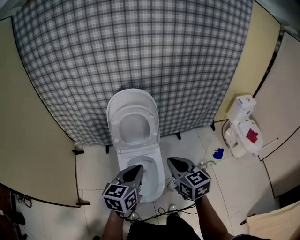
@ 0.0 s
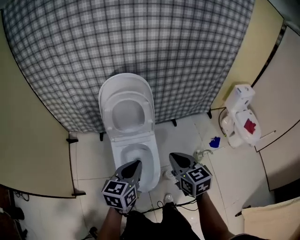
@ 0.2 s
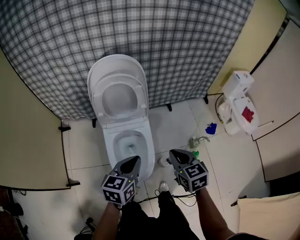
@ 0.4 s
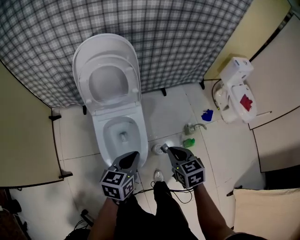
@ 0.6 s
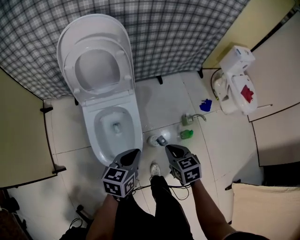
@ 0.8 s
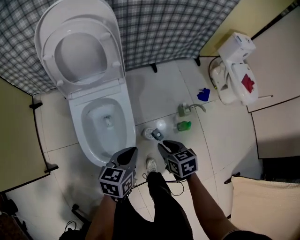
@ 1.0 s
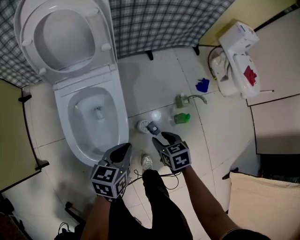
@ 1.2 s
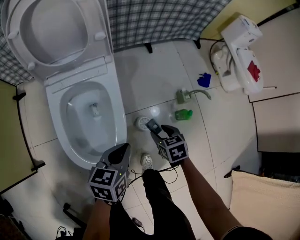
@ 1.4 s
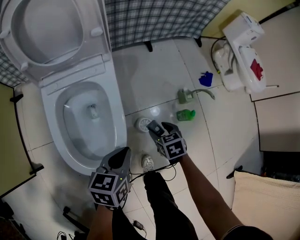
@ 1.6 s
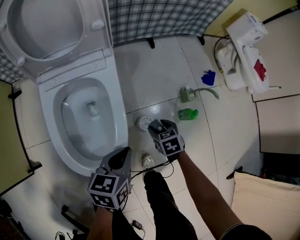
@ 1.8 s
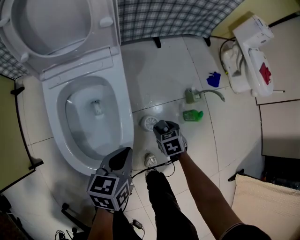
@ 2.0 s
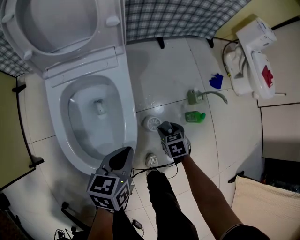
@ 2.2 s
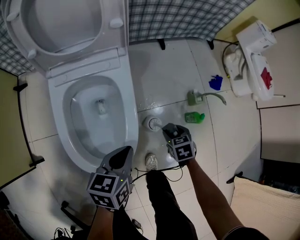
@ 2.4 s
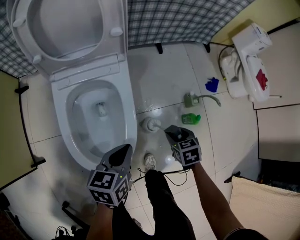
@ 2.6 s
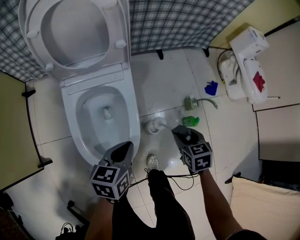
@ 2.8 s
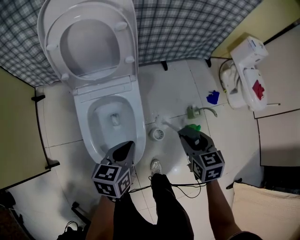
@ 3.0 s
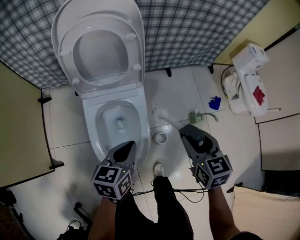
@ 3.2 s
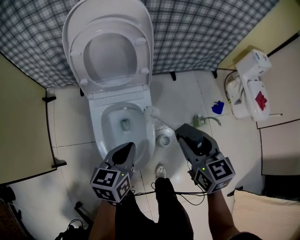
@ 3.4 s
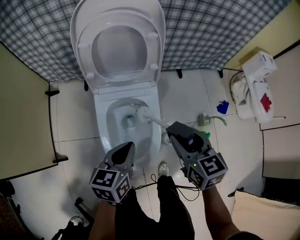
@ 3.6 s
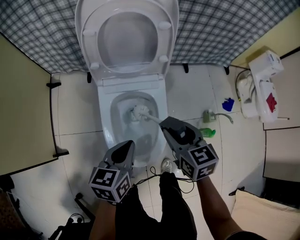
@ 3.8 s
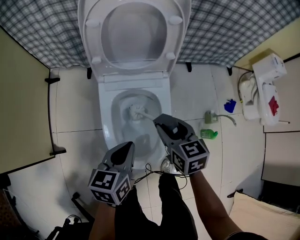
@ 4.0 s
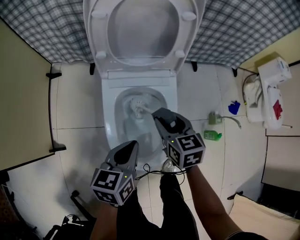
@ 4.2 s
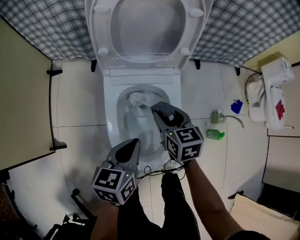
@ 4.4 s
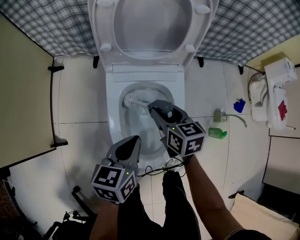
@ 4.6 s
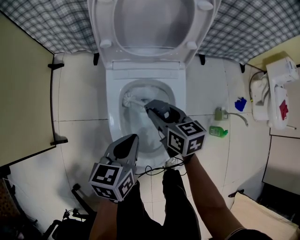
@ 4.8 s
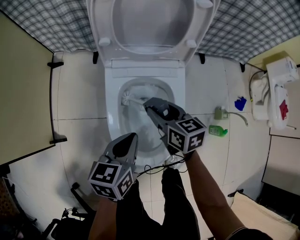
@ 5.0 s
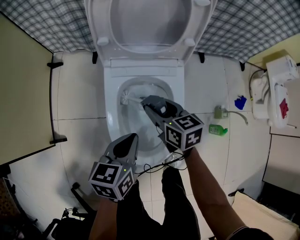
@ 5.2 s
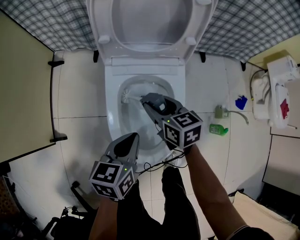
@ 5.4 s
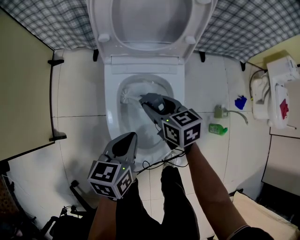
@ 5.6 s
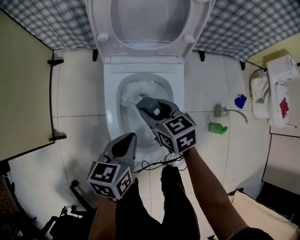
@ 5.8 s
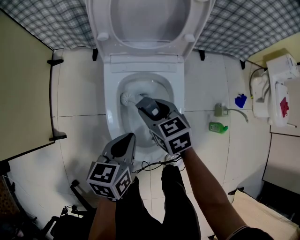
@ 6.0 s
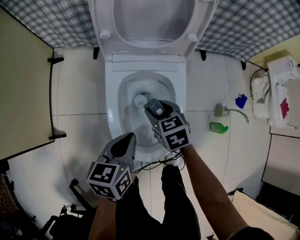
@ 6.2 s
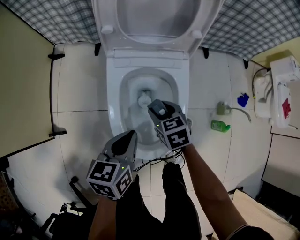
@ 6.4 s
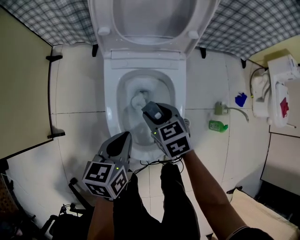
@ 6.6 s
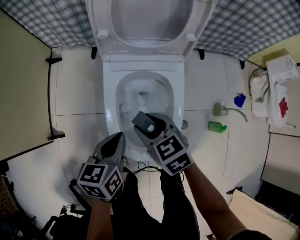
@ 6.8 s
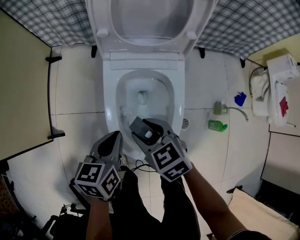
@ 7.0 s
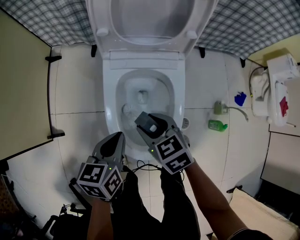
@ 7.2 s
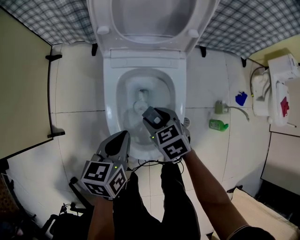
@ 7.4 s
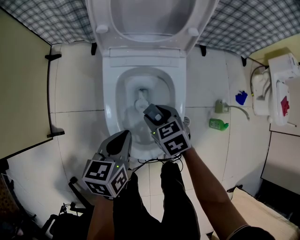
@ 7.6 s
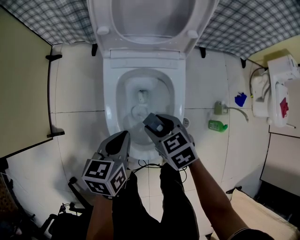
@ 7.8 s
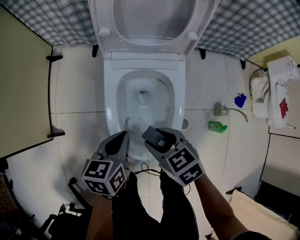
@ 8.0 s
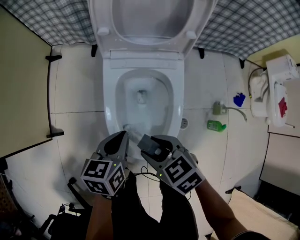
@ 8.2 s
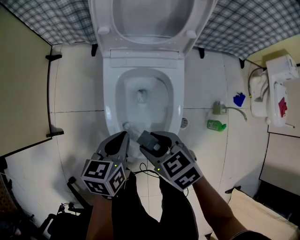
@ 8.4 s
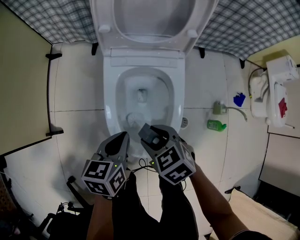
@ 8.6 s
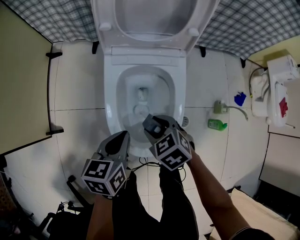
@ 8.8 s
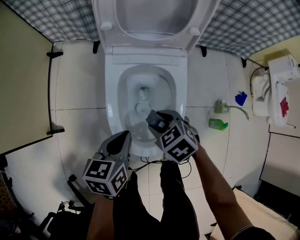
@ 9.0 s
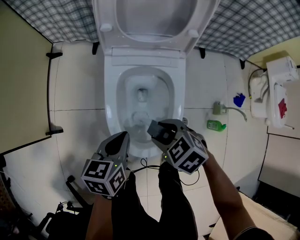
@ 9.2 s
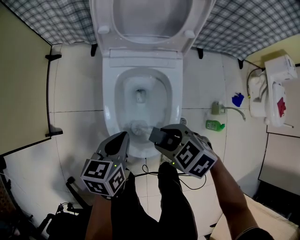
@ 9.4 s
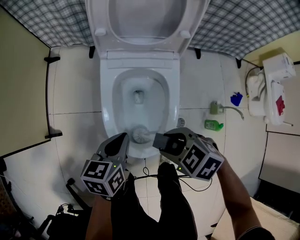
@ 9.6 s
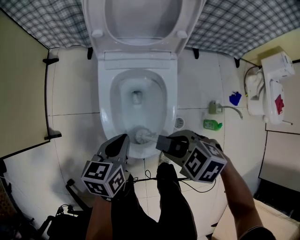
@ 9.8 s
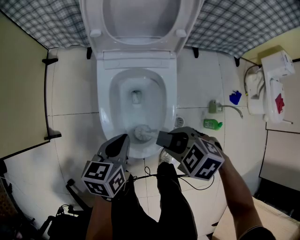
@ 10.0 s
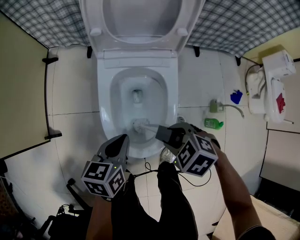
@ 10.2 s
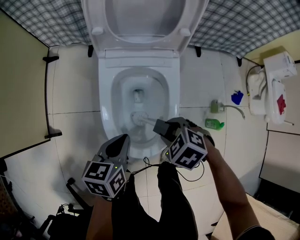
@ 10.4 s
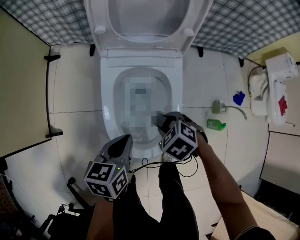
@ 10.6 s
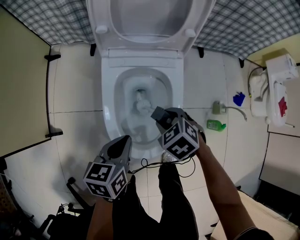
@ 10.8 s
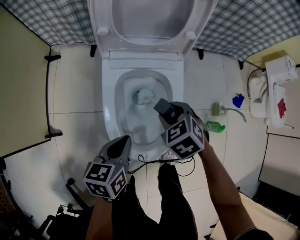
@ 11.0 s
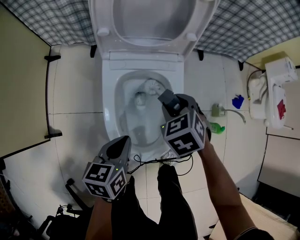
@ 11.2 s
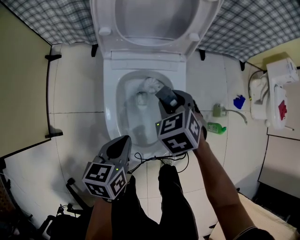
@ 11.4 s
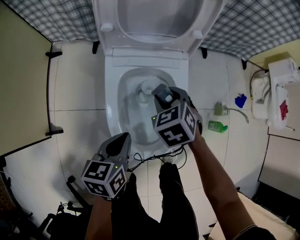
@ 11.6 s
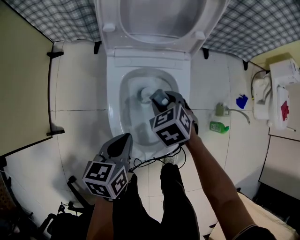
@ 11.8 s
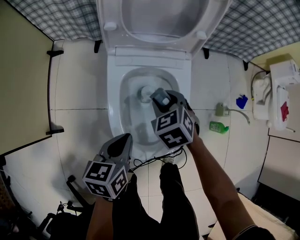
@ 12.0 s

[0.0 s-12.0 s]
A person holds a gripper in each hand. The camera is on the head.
0.0 to 1.6 s: The two grippers go about 50 cm downward. The left gripper rotates roughly 30 degrees. The right gripper angles its fingers downward, by approximately 40 degrees, and opens up.
1.6 to 3.0 s: The right gripper shifts approximately 25 cm upward, while the left gripper heads upward and to the left, covering approximately 15 cm.
3.0 to 4.4 s: The left gripper shifts approximately 10 cm to the left. The right gripper goes some 25 cm to the left.
4.4 to 6.0 s: The right gripper shifts roughly 5 cm to the left.
6.0 to 7.6 s: The right gripper moves up and down over roughly 10 cm, changing direction 2 times.
9.0 to 10.4 s: The right gripper reaches about 10 cm upward, then returns.
10.4 to 12.0 s: The right gripper goes upward and returns, about 5 cm each way, and turns by roughly 30 degrees.

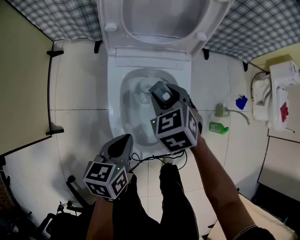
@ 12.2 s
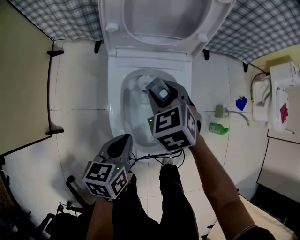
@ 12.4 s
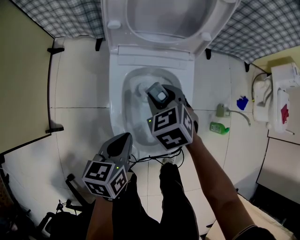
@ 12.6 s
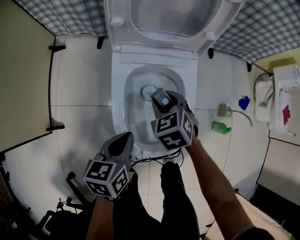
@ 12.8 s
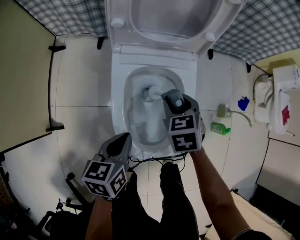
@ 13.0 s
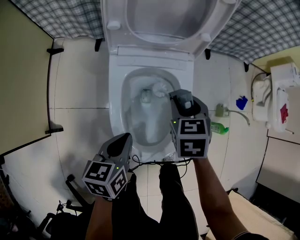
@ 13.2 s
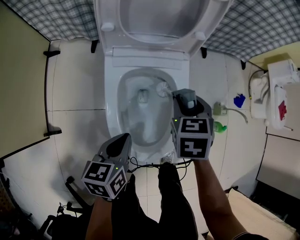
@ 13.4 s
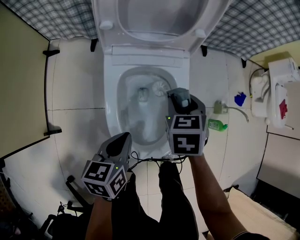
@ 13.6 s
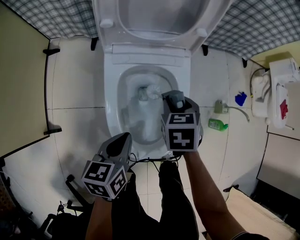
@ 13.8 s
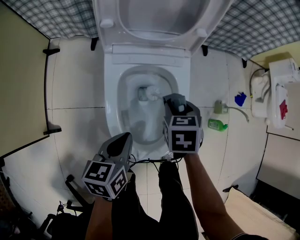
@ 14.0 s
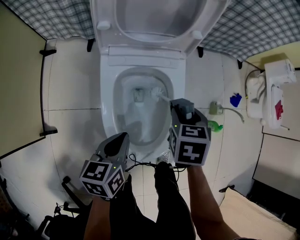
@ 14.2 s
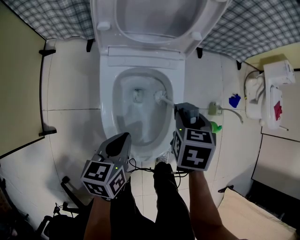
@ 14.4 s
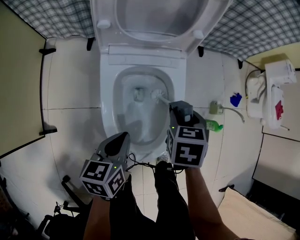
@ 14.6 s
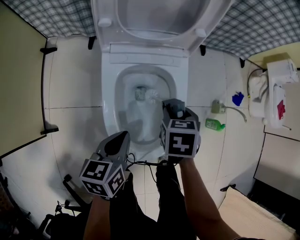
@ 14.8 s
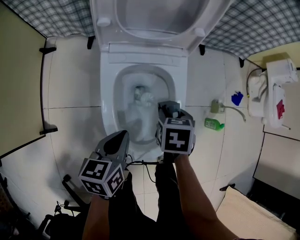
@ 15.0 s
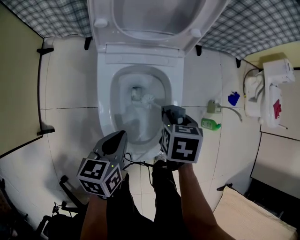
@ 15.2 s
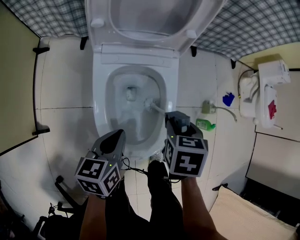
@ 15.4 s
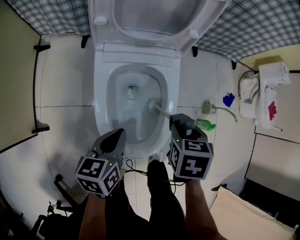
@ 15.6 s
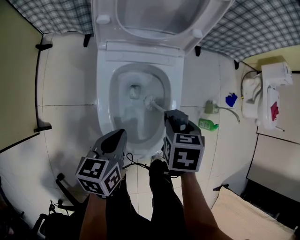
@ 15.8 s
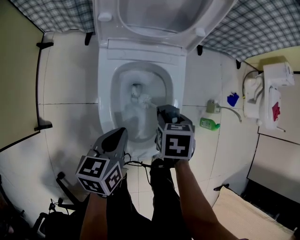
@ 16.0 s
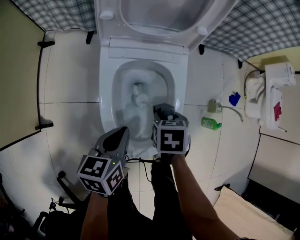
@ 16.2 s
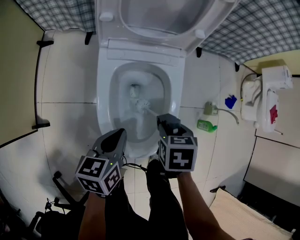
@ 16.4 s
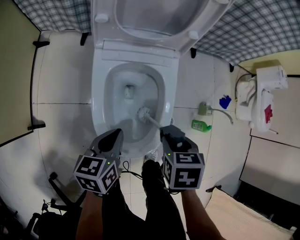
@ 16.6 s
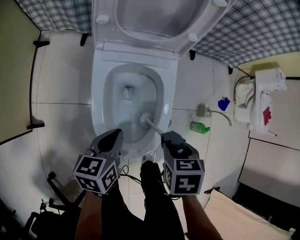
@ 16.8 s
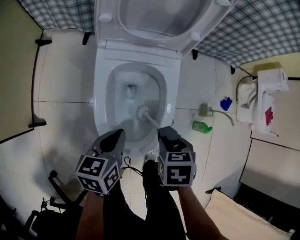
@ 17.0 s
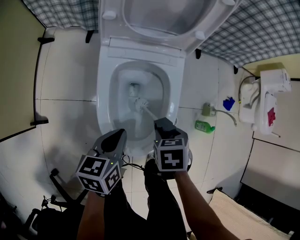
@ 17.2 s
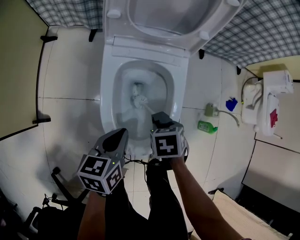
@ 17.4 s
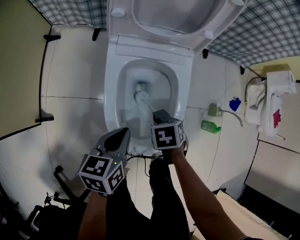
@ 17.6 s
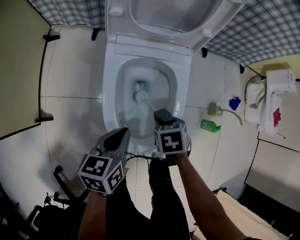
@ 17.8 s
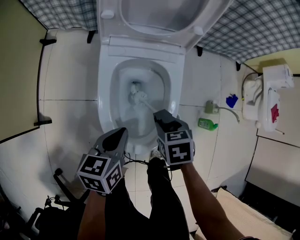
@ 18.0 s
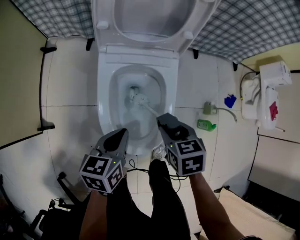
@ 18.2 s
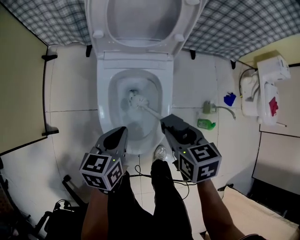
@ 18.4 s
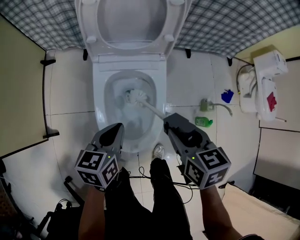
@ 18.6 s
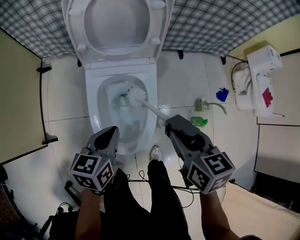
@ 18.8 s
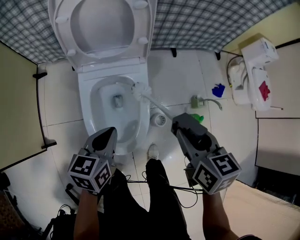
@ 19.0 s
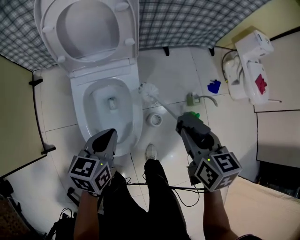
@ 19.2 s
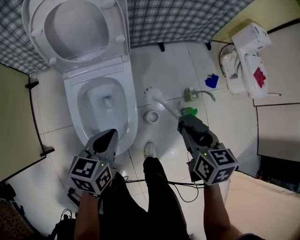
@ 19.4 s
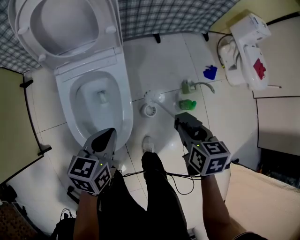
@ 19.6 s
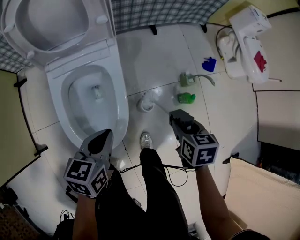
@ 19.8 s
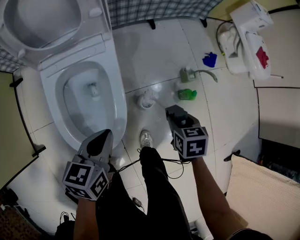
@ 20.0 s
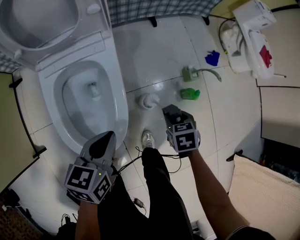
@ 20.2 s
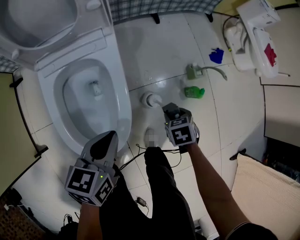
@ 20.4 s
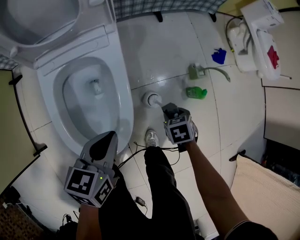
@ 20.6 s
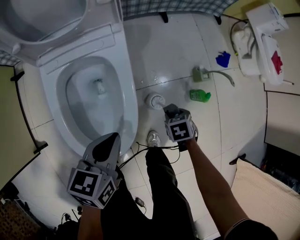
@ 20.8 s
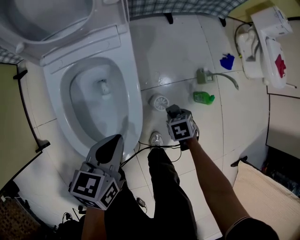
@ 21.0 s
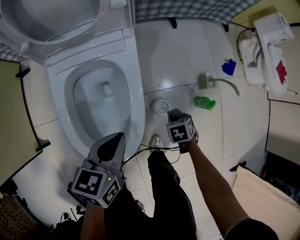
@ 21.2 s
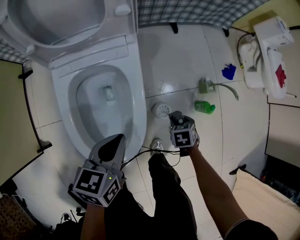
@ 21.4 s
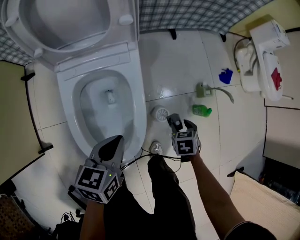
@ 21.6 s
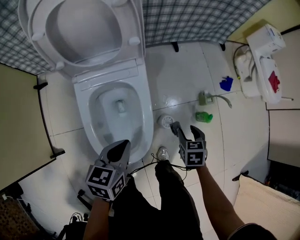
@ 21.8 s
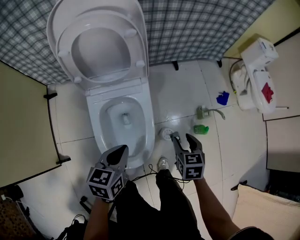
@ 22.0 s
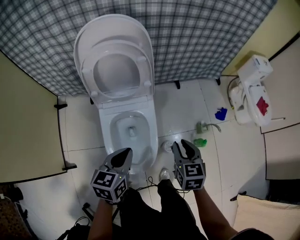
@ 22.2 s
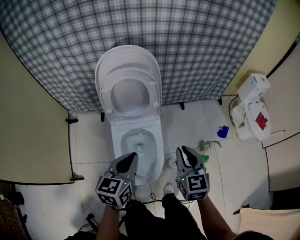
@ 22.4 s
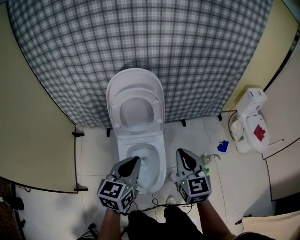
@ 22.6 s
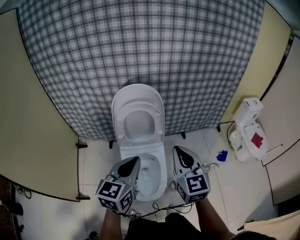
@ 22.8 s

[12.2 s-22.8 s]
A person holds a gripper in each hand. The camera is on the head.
12.2 to 13.8 s: The right gripper is displaced to the right by some 5 cm, and turns by roughly 30 degrees.
13.8 to 15.2 s: The right gripper shifts by approximately 5 cm.
15.2 to 16.8 s: The right gripper moves up and down over approximately 10 cm, changing direction 2 times.
16.8 to 18.2 s: The right gripper travels downward and back again, roughly 15 cm each way.
18.2 to 19.8 s: The right gripper travels to the right by some 25 cm, and turns by some 30 degrees, while the left gripper moves to the right, about 15 cm.
19.8 to 21.2 s: The left gripper shifts by roughly 5 cm; the right gripper goes approximately 25 cm downward, and rotates about 30 degrees.
21.2 to 22.8 s: The right gripper goes roughly 70 cm upward, tips its fingers upward by some 70 degrees, and closes up. Meanwhile the left gripper moves upward, some 40 cm, and swivels some 40 degrees.

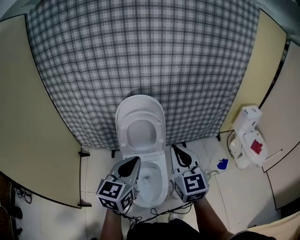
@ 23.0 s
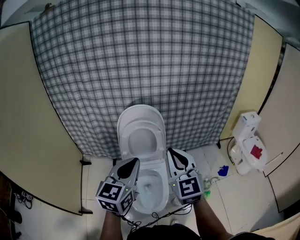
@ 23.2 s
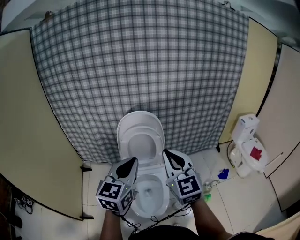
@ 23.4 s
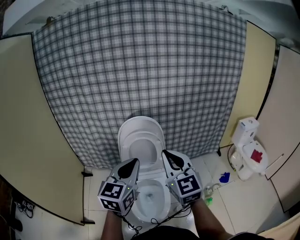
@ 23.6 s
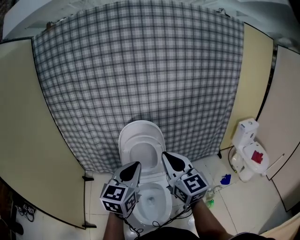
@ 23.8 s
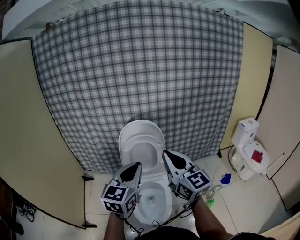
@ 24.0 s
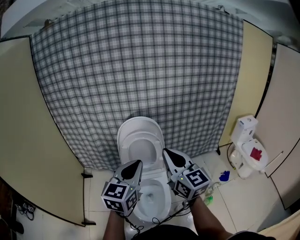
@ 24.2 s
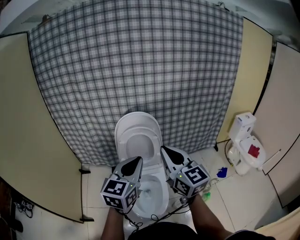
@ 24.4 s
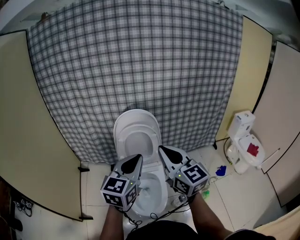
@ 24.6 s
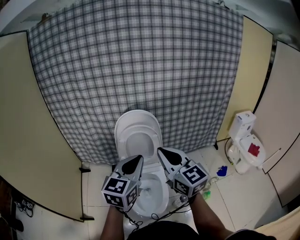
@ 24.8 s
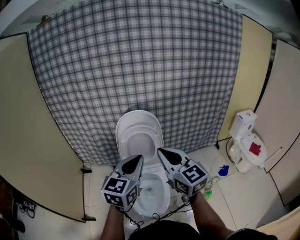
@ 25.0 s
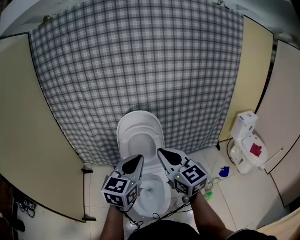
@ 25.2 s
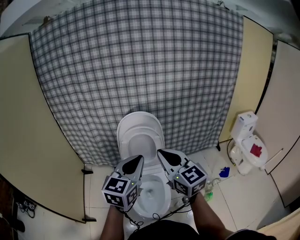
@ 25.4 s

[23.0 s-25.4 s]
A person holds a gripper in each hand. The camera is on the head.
23.0 to 24.2 s: The right gripper shifts about 5 cm upward, while the left gripper changes place by some 5 cm.
24.2 to 25.4 s: The grippers make only small movements.
